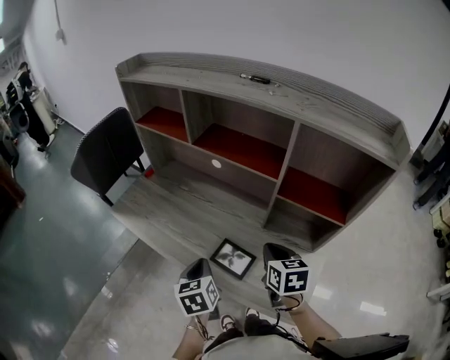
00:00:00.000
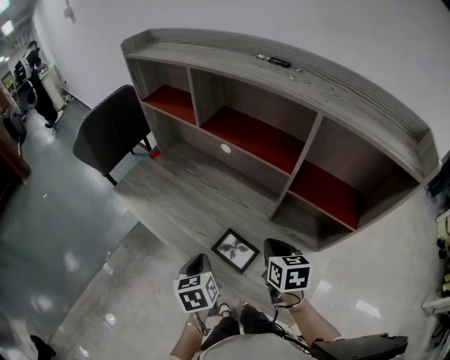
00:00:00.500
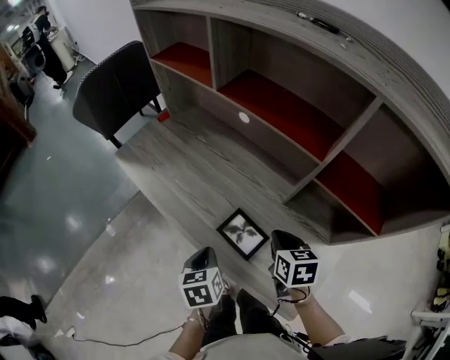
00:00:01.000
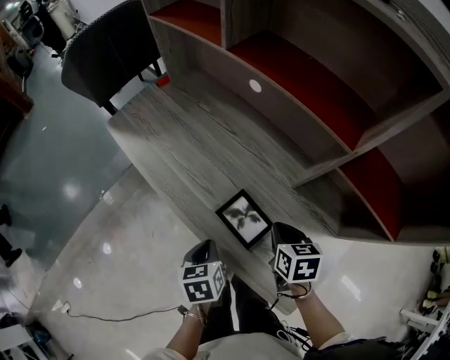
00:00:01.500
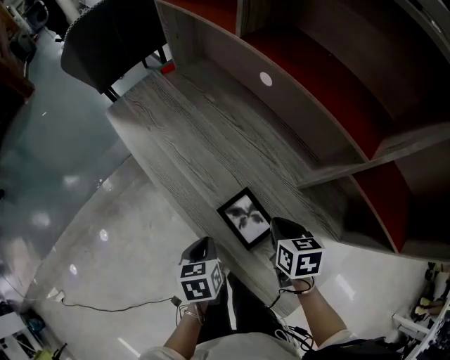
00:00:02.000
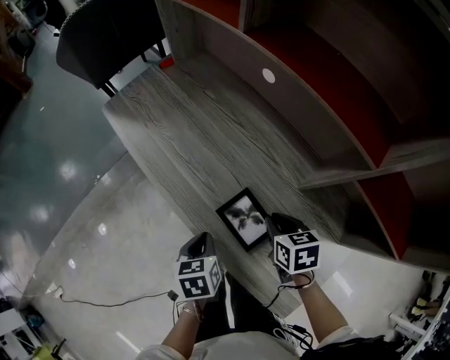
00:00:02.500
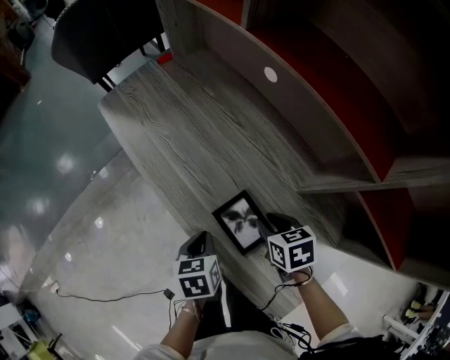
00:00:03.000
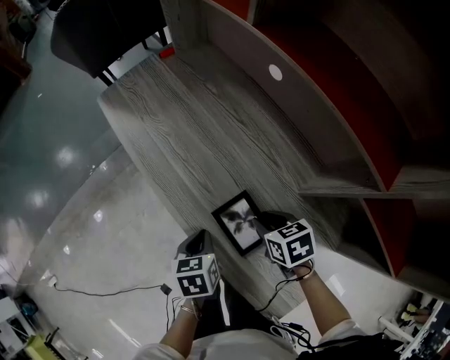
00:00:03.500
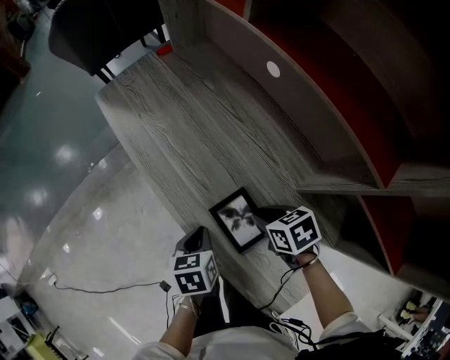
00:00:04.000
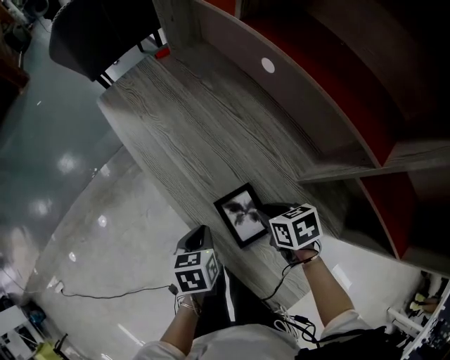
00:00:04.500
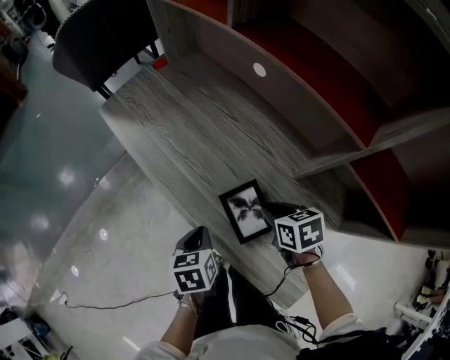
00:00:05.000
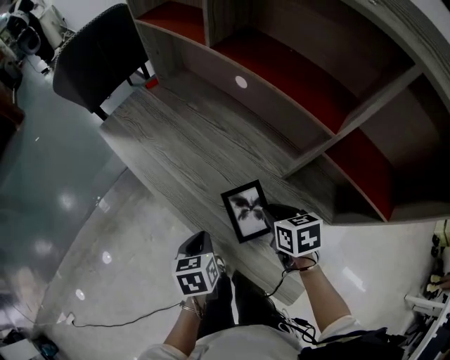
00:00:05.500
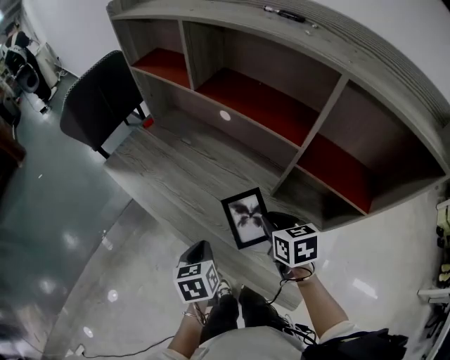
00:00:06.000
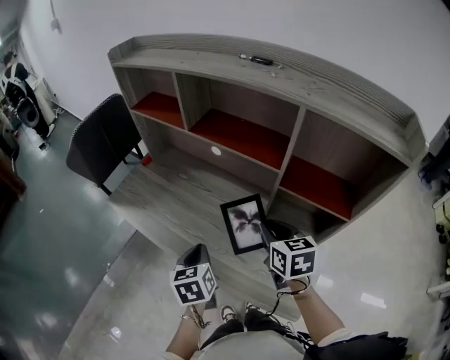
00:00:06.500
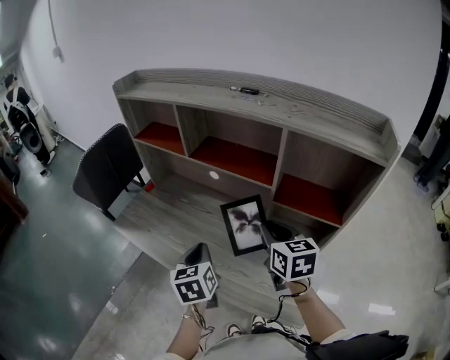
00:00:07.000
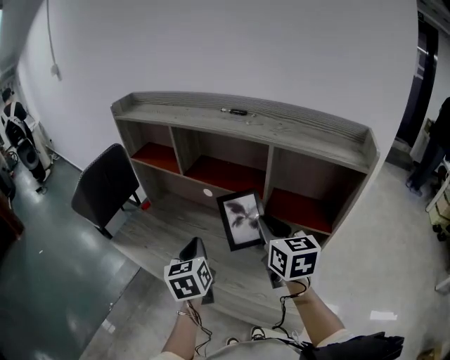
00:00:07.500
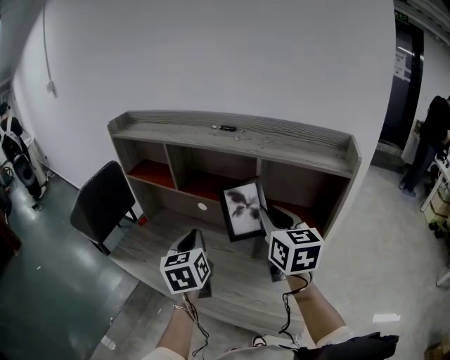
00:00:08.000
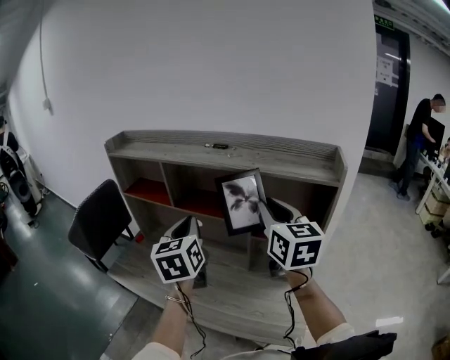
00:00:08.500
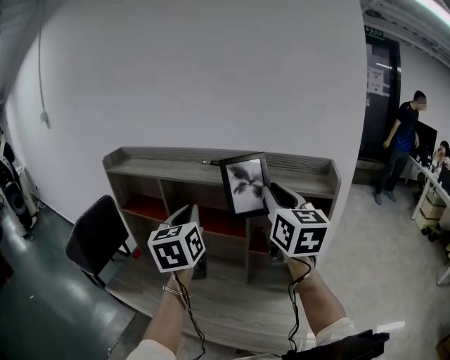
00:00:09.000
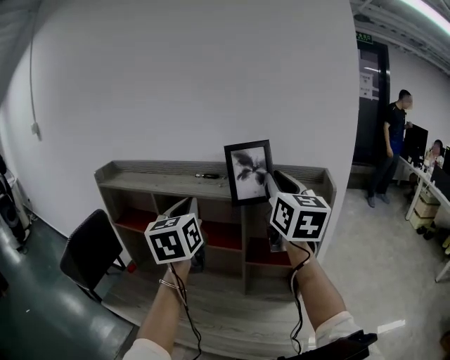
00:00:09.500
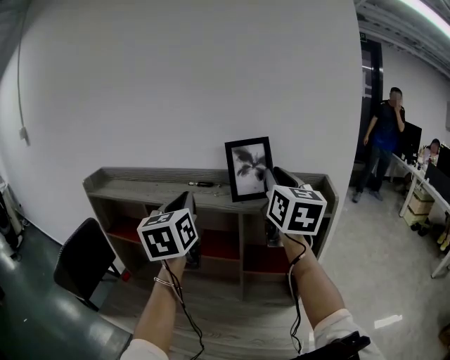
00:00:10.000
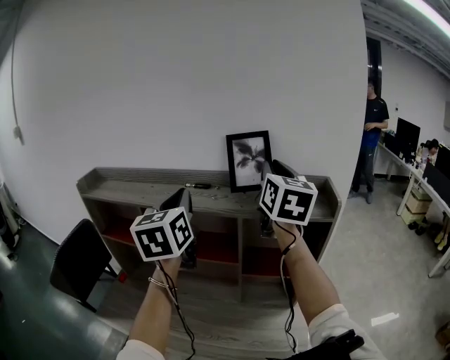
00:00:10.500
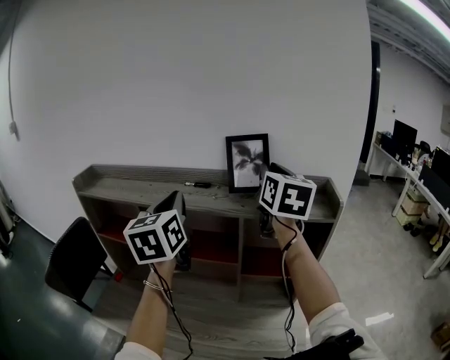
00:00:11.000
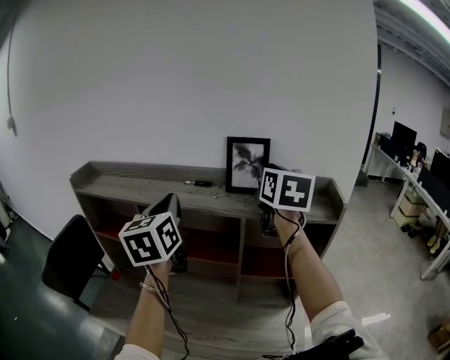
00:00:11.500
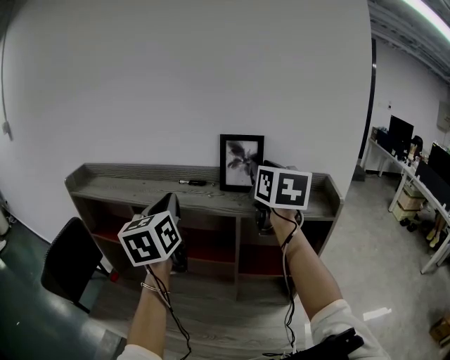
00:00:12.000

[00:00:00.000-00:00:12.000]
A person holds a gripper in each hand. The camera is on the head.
00:00:00.000 to 00:00:02.000: Both grippers travel together downward, some 15 cm. The left gripper rotates approximately 20 degrees, while the right gripper changes its angle by approximately 30 degrees.
00:00:02.000 to 00:00:04.000: The right gripper changes place by about 5 cm, and swivels approximately 30 degrees.
00:00:04.000 to 00:00:06.000: The two grippers go approximately 15 cm upward. The right gripper swivels about 40 degrees.
00:00:06.000 to 00:00:08.000: Both grippers move upward, some 30 cm. The right gripper tilts its fingers some 40 degrees upward; the left gripper tips its fingers upward by approximately 30 degrees.
00:00:08.000 to 00:00:10.000: The two grippers go some 25 cm upward and forward. The left gripper changes its angle by about 20 degrees. The right gripper turns by roughly 30 degrees.
00:00:10.000 to 00:00:12.000: The right gripper travels forward by approximately 5 cm; the left gripper moves about 5 cm.

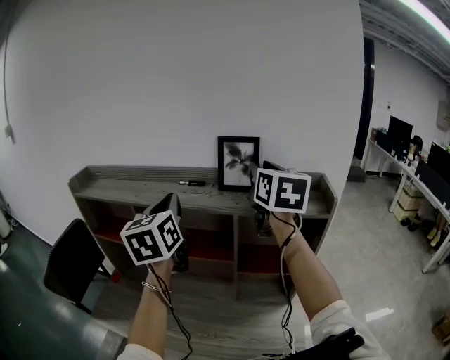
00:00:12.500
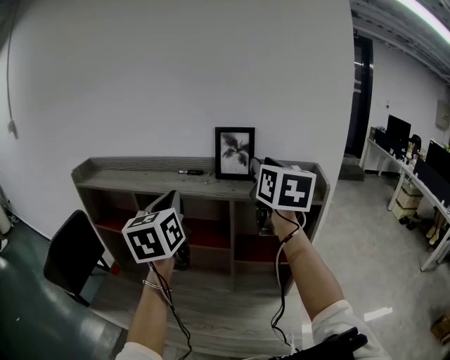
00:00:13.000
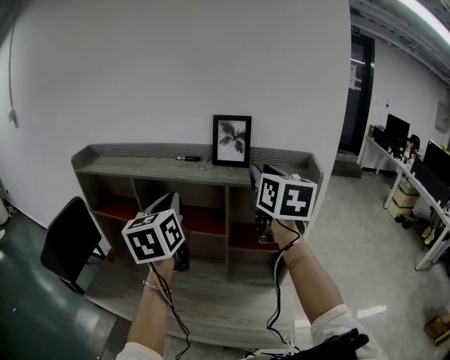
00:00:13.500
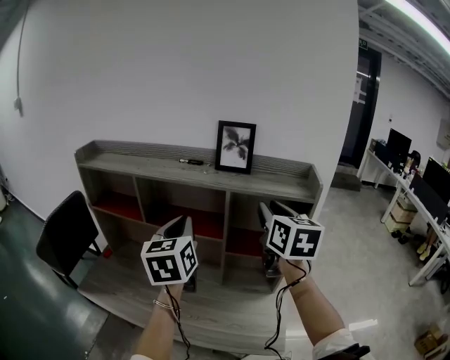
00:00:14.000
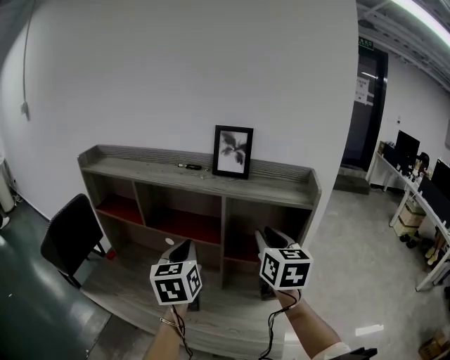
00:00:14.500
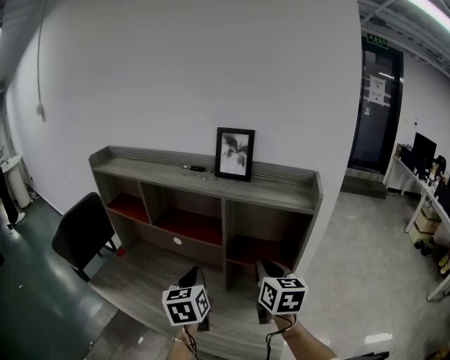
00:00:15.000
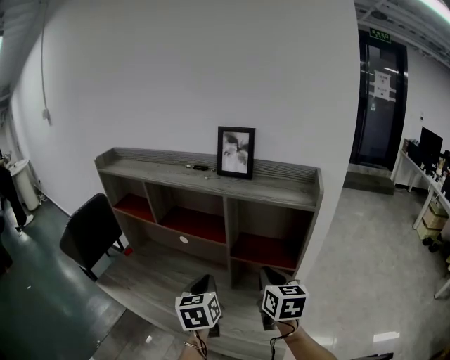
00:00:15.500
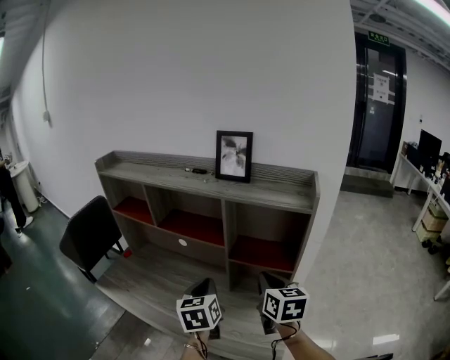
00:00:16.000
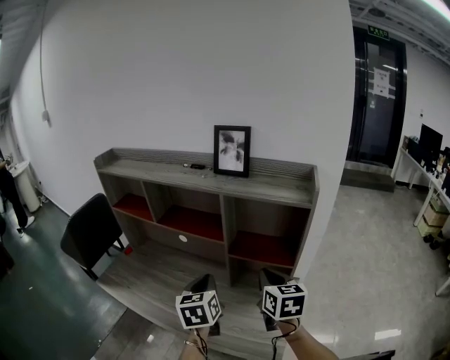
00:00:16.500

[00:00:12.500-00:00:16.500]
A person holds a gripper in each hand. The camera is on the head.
00:00:12.500 to 00:00:14.500: The left gripper heads downward, backward and to the right, covering approximately 20 cm; the right gripper shifts approximately 20 cm downward and backward.
00:00:14.500 to 00:00:16.500: The left gripper is displaced downward and backward by roughly 15 cm; the right gripper shifts roughly 15 cm downward.

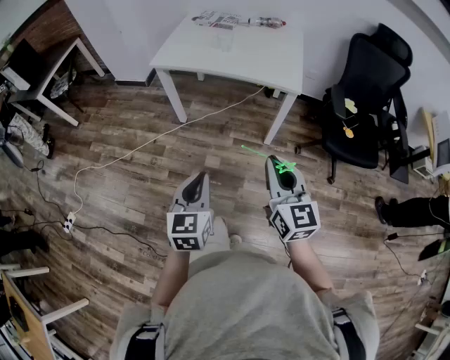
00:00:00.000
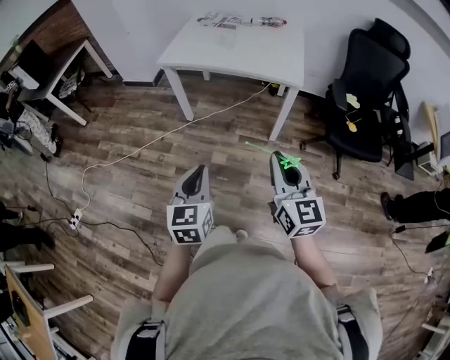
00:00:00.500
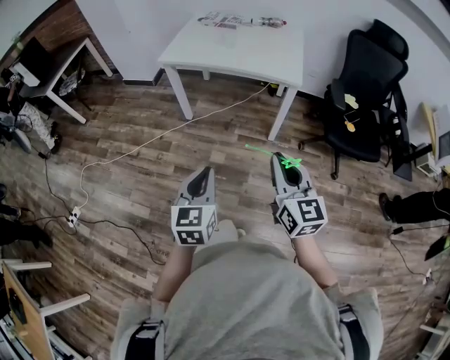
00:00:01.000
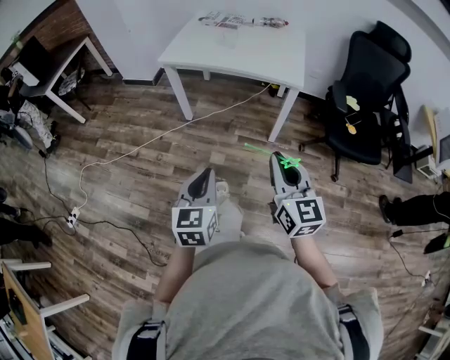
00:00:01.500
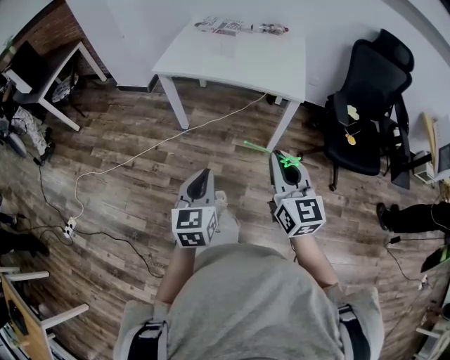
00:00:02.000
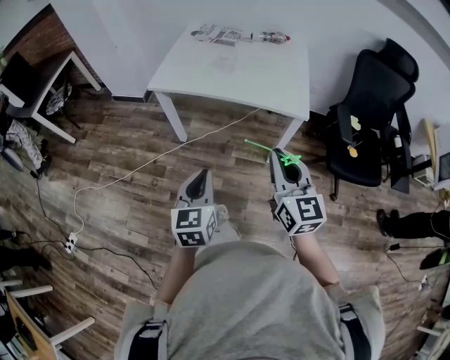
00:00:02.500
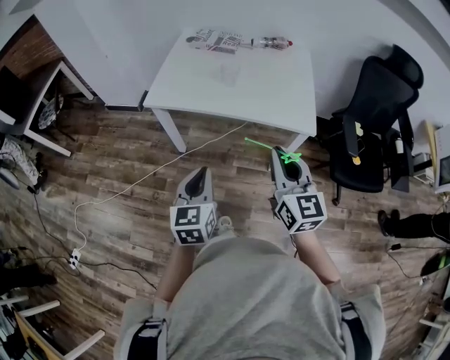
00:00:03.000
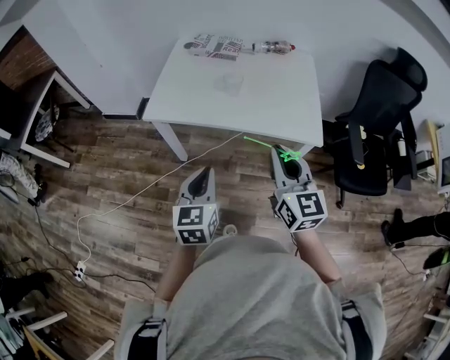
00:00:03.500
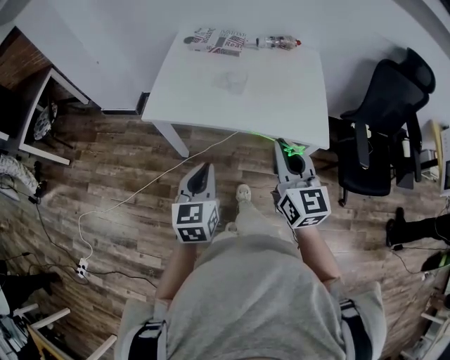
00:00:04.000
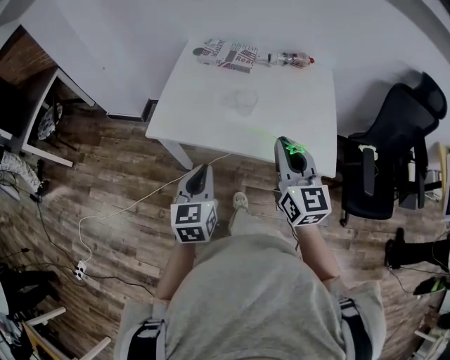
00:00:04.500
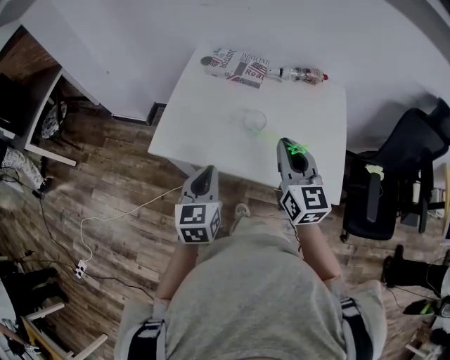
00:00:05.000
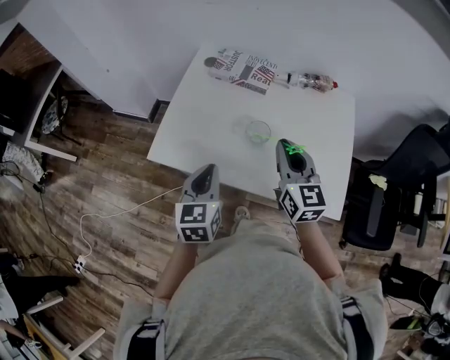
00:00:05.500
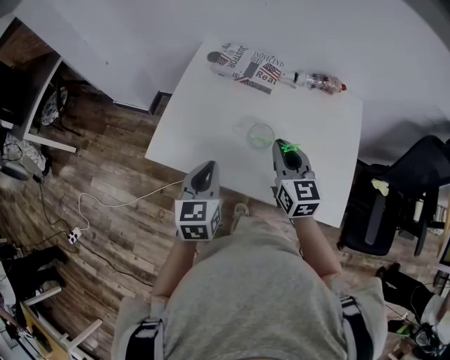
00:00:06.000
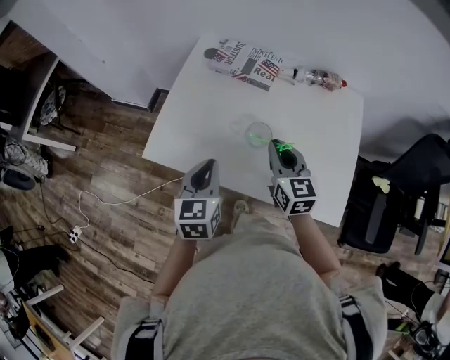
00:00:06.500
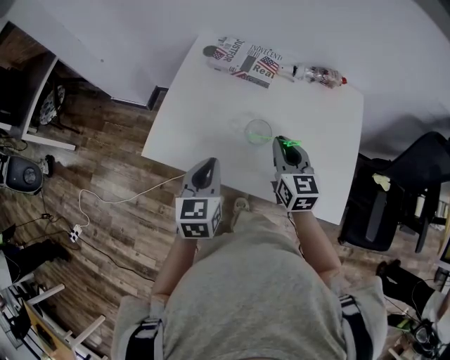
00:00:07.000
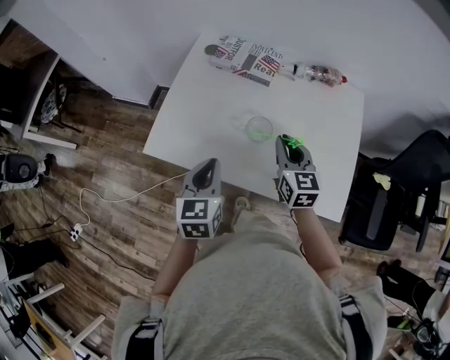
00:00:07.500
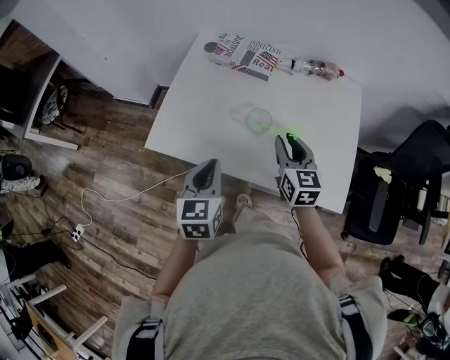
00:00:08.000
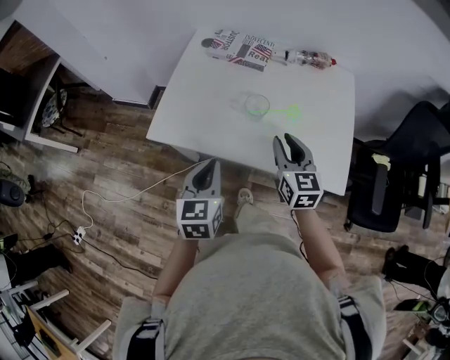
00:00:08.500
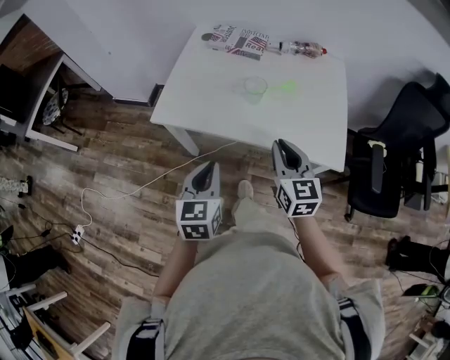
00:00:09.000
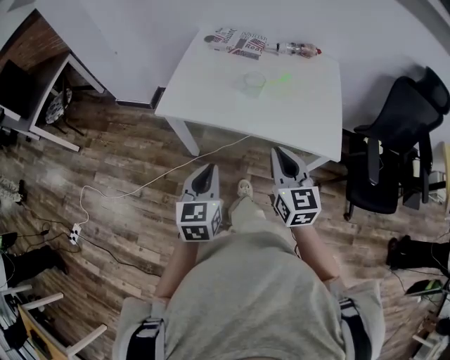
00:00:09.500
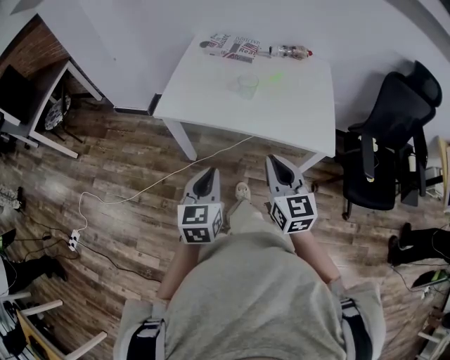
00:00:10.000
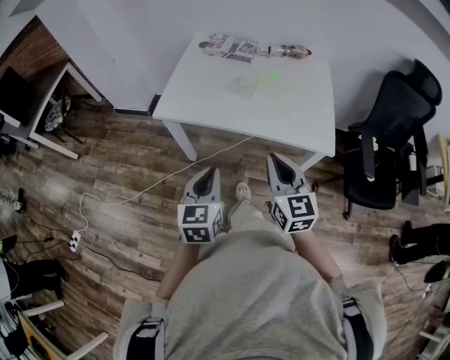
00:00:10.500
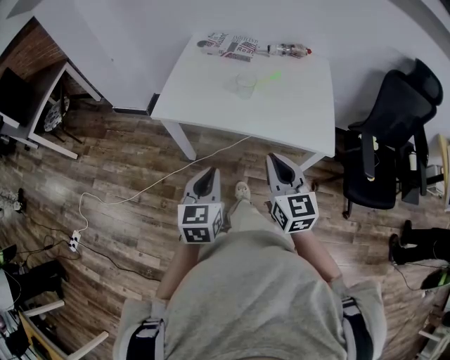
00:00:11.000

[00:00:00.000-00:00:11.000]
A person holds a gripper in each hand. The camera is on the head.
00:00:00.000 to 00:00:02.000: The right gripper reaches approximately 5 cm backward, then returns, while the left gripper travels backward and back again, approximately 5 cm each way.
00:00:02.000 to 00:00:03.500: The two grippers go about 30 cm forward.
00:00:03.500 to 00:00:05.500: The two grippers go some 30 cm forward.
00:00:05.500 to 00:00:07.500: The right gripper moves downward, roughly 10 cm.
00:00:07.500 to 00:00:09.000: Both grippers travel together backward, about 20 cm.
00:00:09.000 to 00:00:11.000: Both grippers move backward, about 10 cm.
